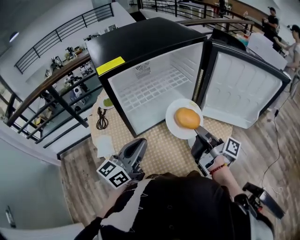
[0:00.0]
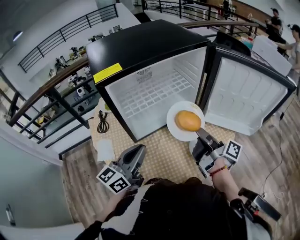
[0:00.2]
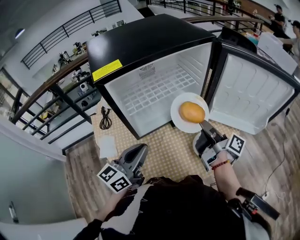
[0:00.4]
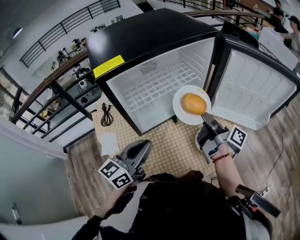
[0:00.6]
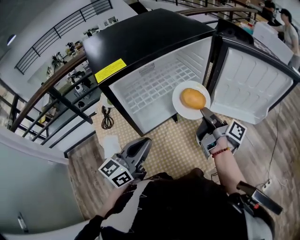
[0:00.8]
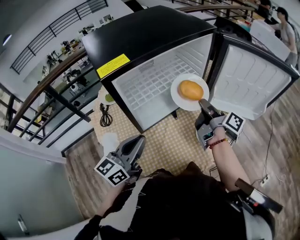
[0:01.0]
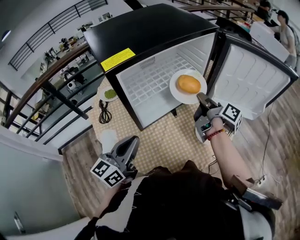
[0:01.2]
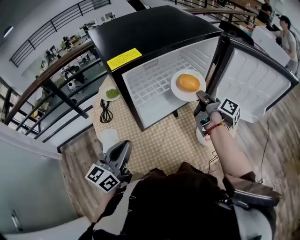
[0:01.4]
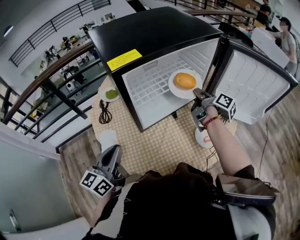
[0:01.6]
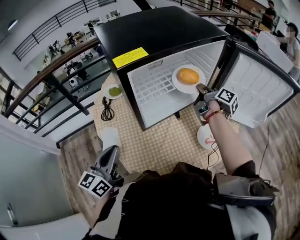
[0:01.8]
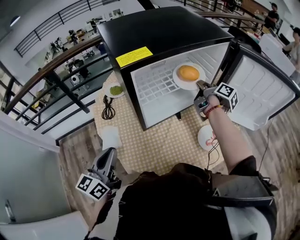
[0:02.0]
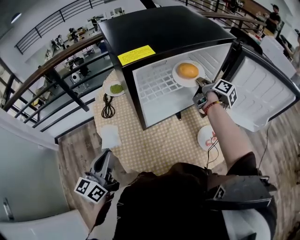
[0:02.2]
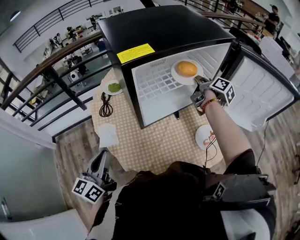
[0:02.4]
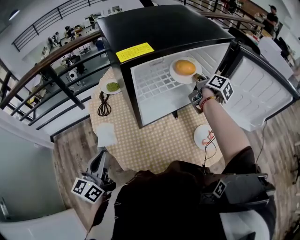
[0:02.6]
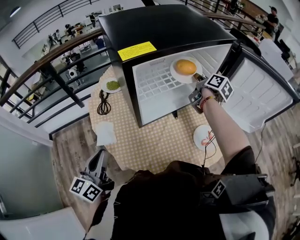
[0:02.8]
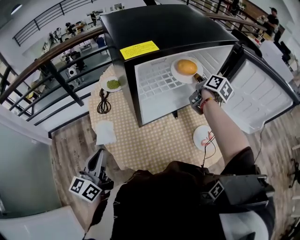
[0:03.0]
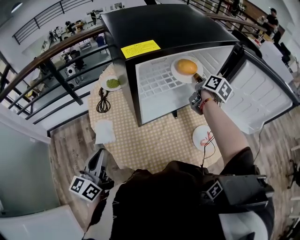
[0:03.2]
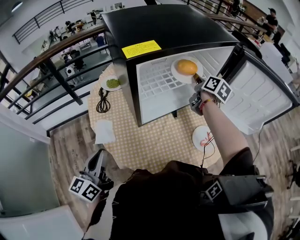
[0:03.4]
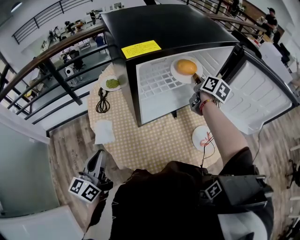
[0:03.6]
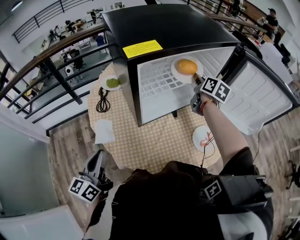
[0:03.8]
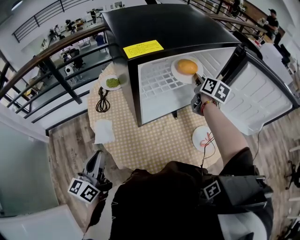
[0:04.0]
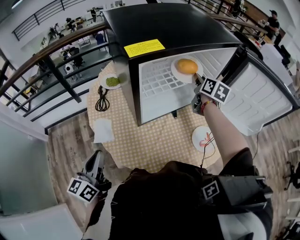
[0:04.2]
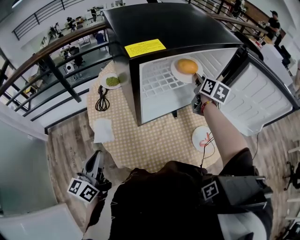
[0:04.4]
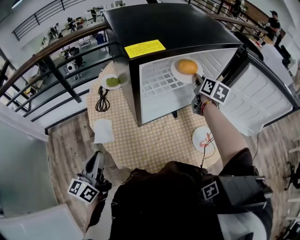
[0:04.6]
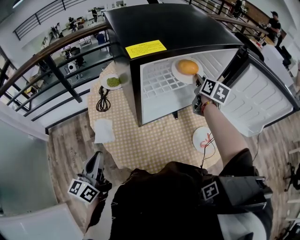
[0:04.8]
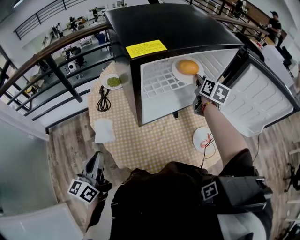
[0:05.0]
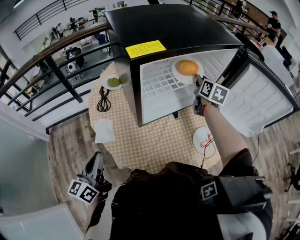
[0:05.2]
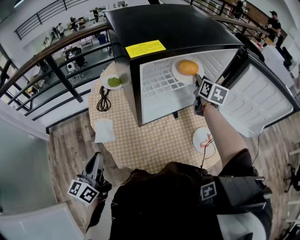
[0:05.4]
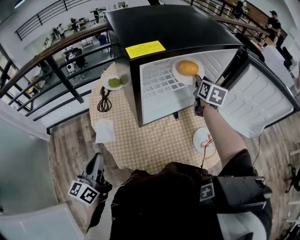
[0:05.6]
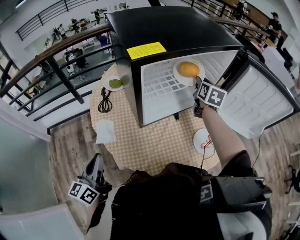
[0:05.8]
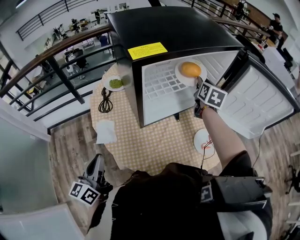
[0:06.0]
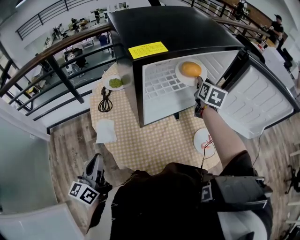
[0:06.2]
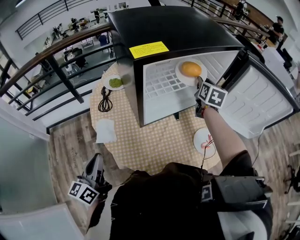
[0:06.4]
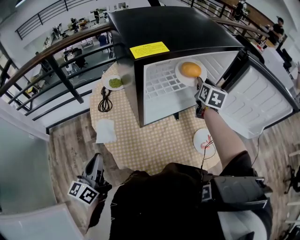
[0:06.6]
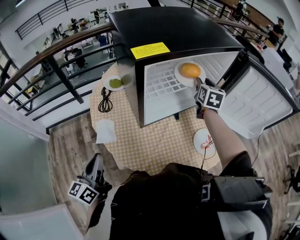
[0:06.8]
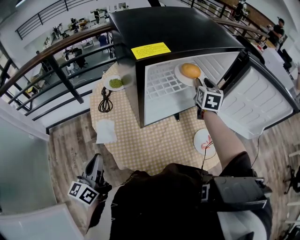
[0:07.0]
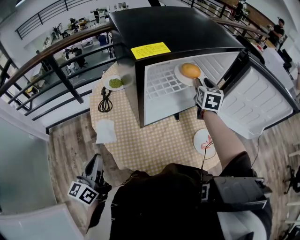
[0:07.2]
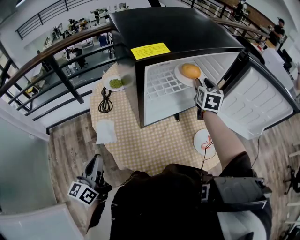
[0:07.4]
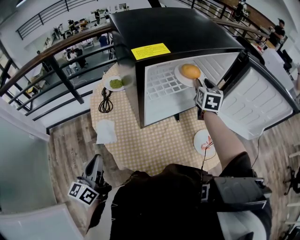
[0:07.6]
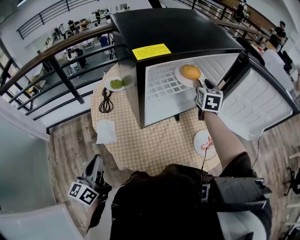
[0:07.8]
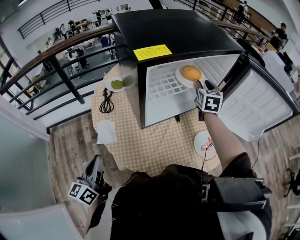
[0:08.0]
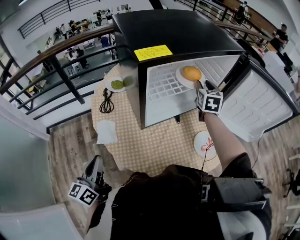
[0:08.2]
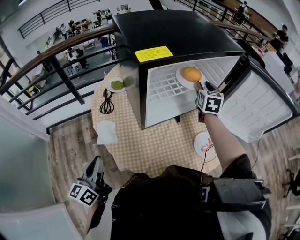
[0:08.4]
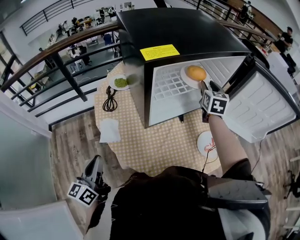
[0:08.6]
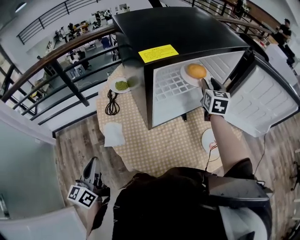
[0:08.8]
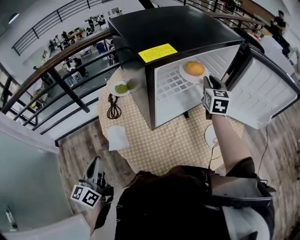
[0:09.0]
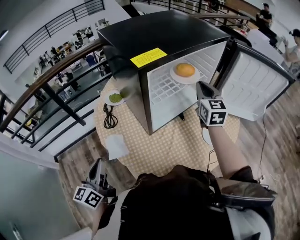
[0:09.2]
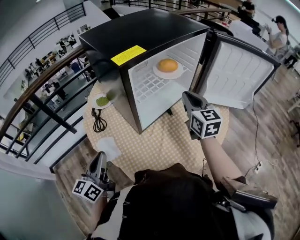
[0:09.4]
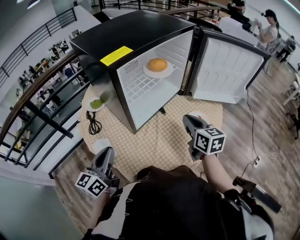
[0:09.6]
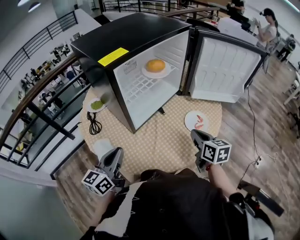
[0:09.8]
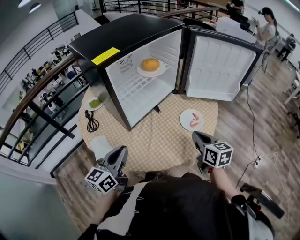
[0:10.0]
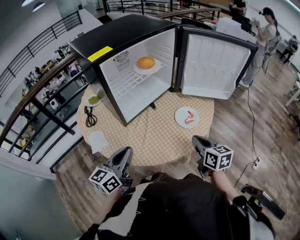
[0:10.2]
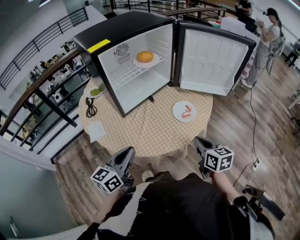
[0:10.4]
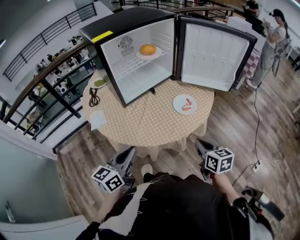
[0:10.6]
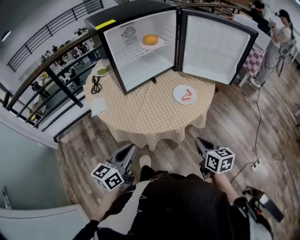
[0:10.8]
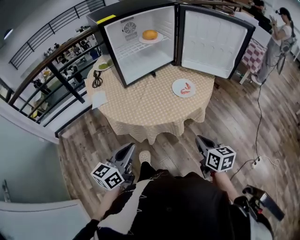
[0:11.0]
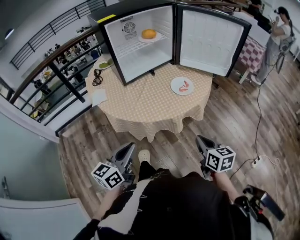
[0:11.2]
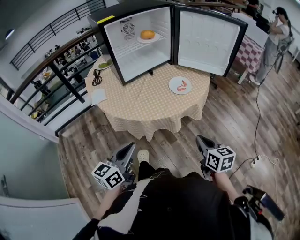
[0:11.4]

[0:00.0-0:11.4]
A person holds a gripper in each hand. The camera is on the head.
0:00.0 to 0:01.4: The left gripper goes approximately 10 cm to the left. The right gripper goes about 15 cm forward, and turns by about 20 degrees.
0:01.4 to 0:02.8: The right gripper travels forward by about 10 cm, and rotates roughly 20 degrees. The left gripper is displaced to the left and backward by roughly 10 cm.
0:02.8 to 0:04.2: The right gripper rotates roughly 30 degrees.
0:04.2 to 0:05.6: The grippers make only small movements.
0:05.6 to 0:08.6: There are only small adjustments of the grippers.
0:08.6 to 0:10.0: The left gripper shifts some 15 cm to the right and forward, and rotates some 40 degrees; the right gripper is displaced backward by about 35 cm, changes its angle by some 30 degrees, and closes.
0:10.0 to 0:11.4: The two grippers go about 30 cm backward and to the right.

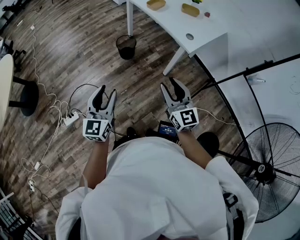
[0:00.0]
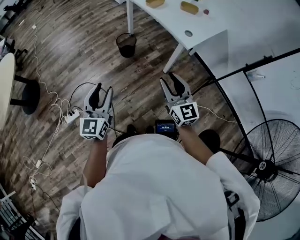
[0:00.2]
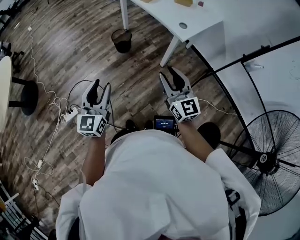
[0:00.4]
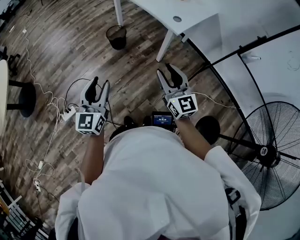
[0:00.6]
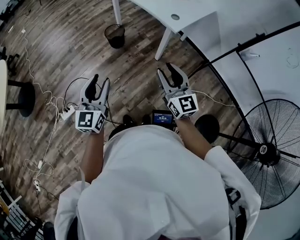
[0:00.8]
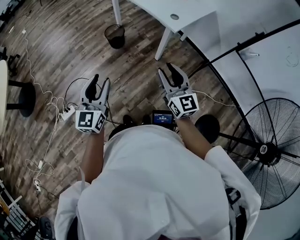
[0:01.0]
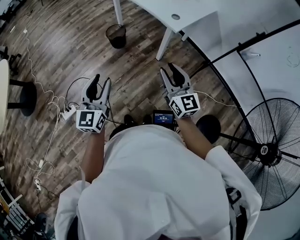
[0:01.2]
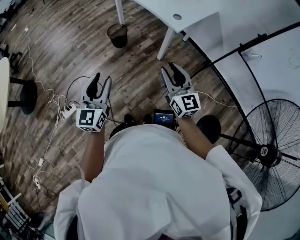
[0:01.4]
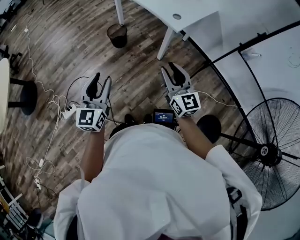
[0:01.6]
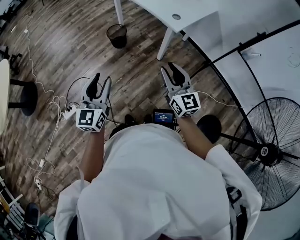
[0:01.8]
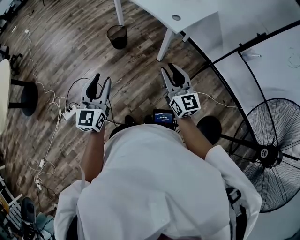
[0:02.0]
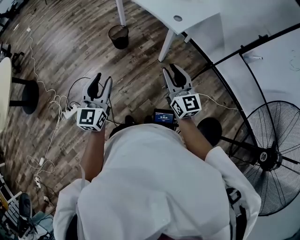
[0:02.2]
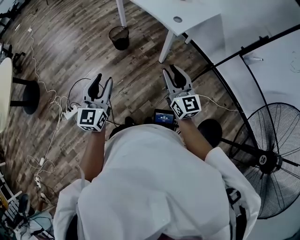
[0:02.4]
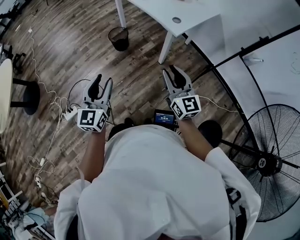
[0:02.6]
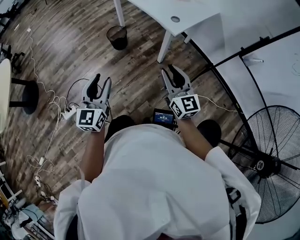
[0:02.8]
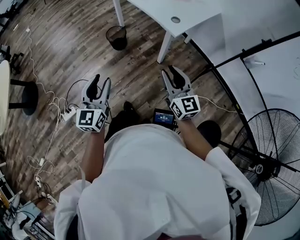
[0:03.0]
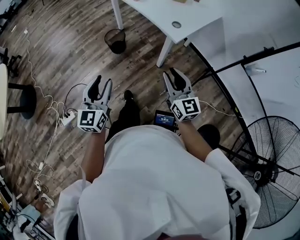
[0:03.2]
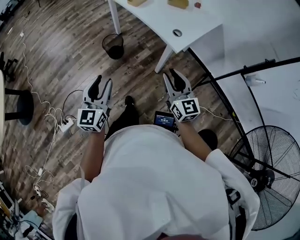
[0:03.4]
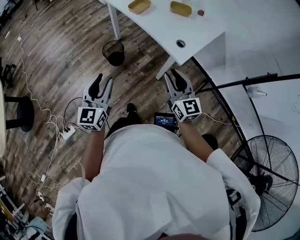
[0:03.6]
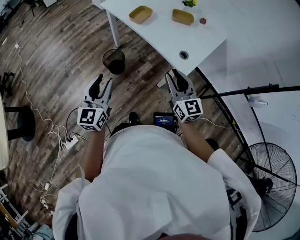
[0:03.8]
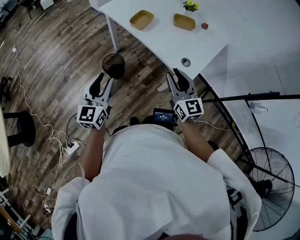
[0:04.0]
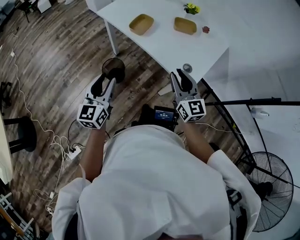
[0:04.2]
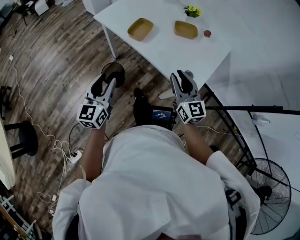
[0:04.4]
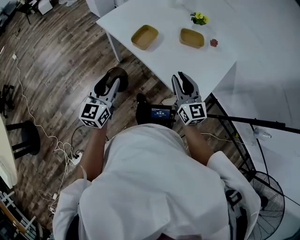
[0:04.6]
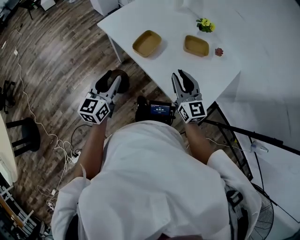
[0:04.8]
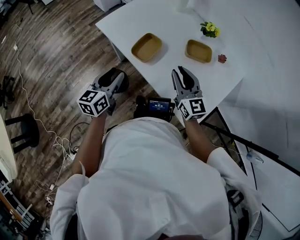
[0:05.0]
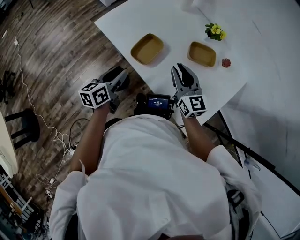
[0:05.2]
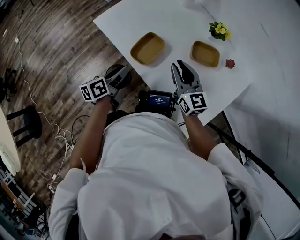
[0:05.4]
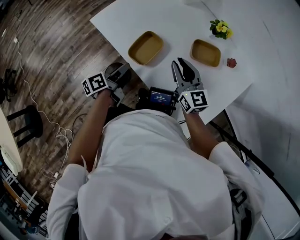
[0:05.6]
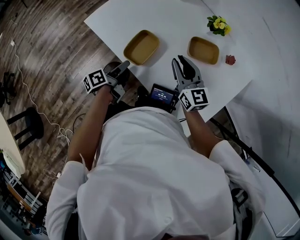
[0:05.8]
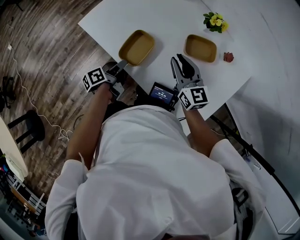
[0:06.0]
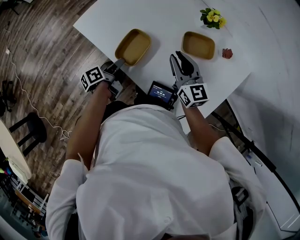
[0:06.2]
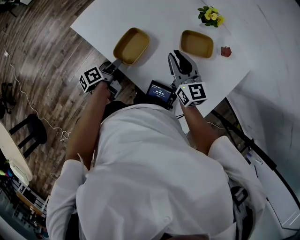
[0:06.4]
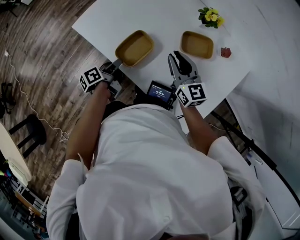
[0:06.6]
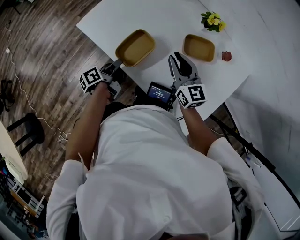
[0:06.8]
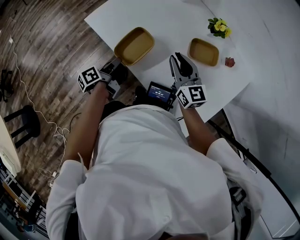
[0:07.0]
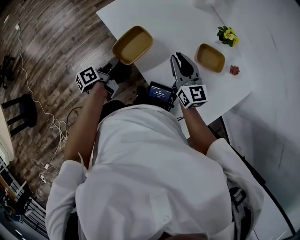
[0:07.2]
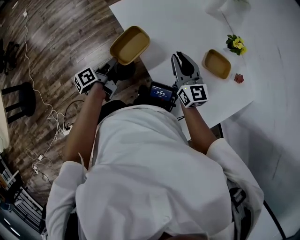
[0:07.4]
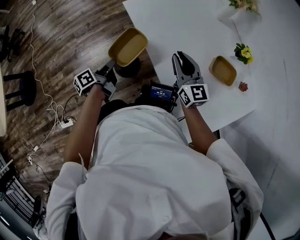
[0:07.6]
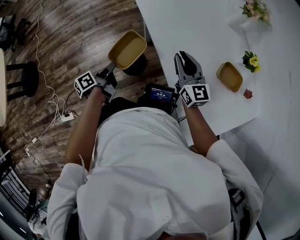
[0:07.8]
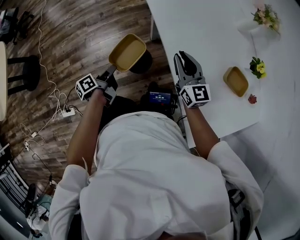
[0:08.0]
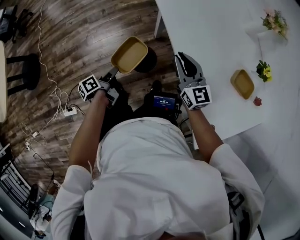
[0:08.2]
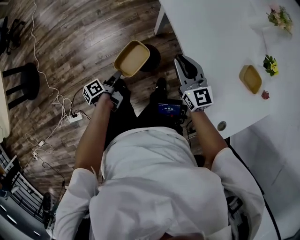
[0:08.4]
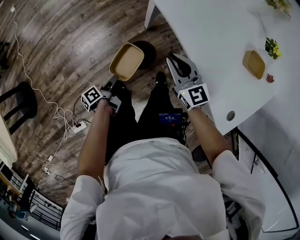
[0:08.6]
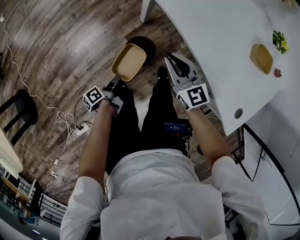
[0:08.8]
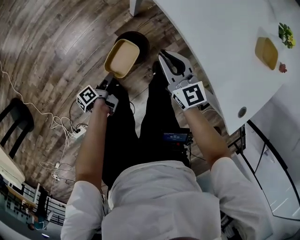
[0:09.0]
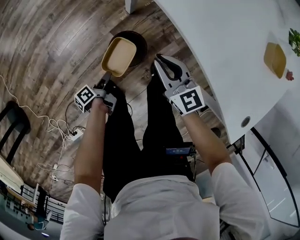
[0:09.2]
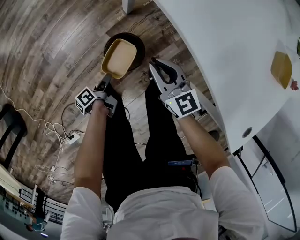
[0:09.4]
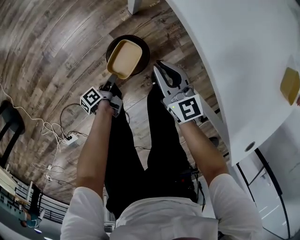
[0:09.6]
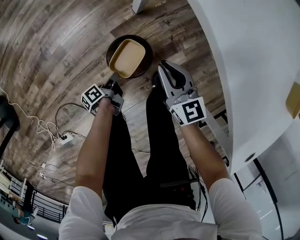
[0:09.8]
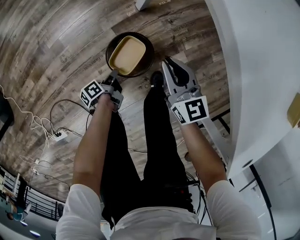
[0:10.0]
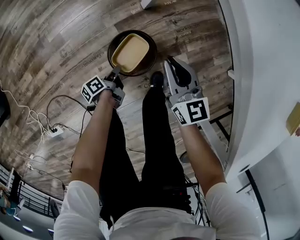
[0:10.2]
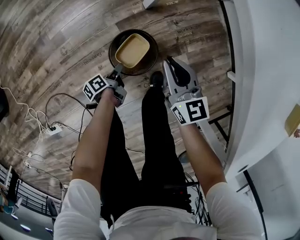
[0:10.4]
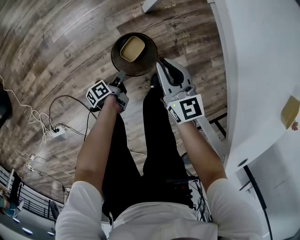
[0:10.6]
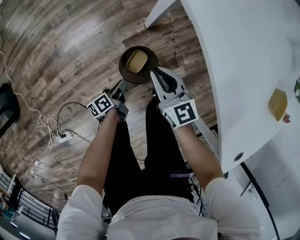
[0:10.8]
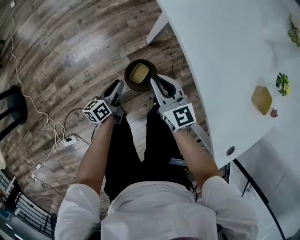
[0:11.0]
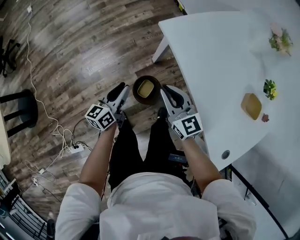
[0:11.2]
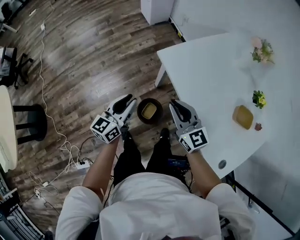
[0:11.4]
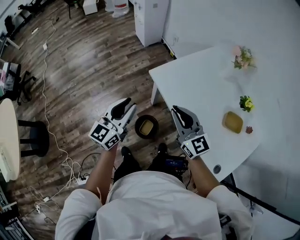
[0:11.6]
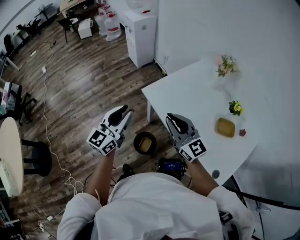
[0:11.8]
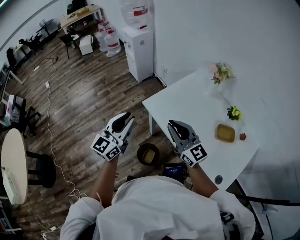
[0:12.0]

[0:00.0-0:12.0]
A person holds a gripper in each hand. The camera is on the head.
0:00.0 to 0:01.6: Both grippers travel together to the right, approximately 5 cm.
0:01.6 to 0:03.0: The grippers both shift forward by about 5 cm.
0:03.0 to 0:04.4: The two grippers travel together, forward, some 50 cm.
0:04.4 to 0:06.0: The left gripper is displaced forward and downward by some 35 cm, and rolls counterclockwise, seen from behind, by some 70 degrees. The right gripper heads forward, covering about 30 cm.
0:06.0 to 0:07.6: The left gripper shifts about 20 cm to the left and backward, changes its angle by approximately 30 degrees, and closes up; the right gripper is displaced to the left by approximately 15 cm.
0:07.6 to 0:09.0: Both grippers travel together downward and to the left, roughly 30 cm. The left gripper rotates approximately 20 degrees.
0:09.0 to 0:10.4: The two grippers go about 25 cm downward. The left gripper opens up.
0:10.4 to 0:12.0: Both grippers travel together upward, about 70 cm. The right gripper points its fingers about 30 degrees further upward; the left gripper rotates around the line of its fingers by roughly 90 degrees, clockwise from behind.
